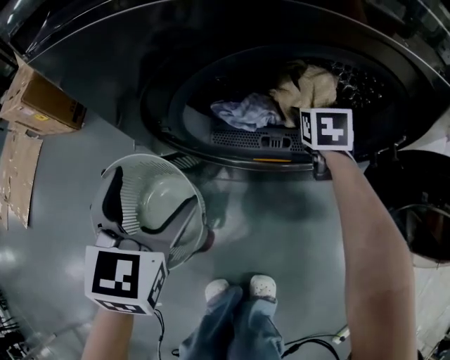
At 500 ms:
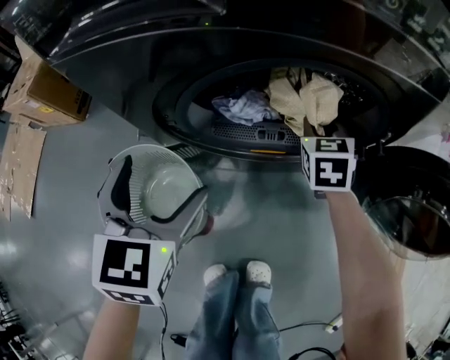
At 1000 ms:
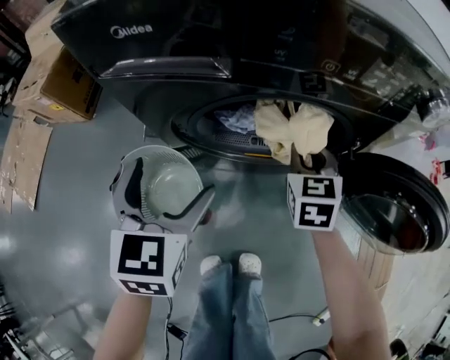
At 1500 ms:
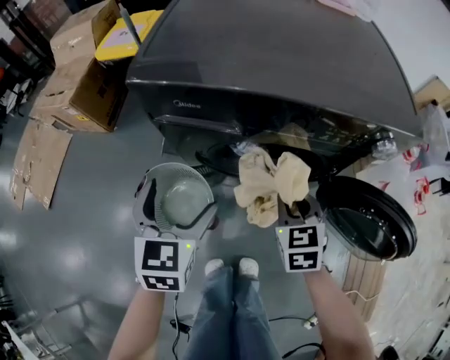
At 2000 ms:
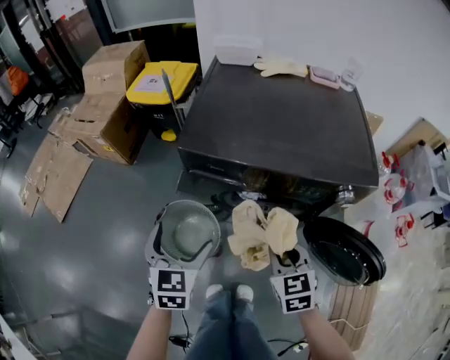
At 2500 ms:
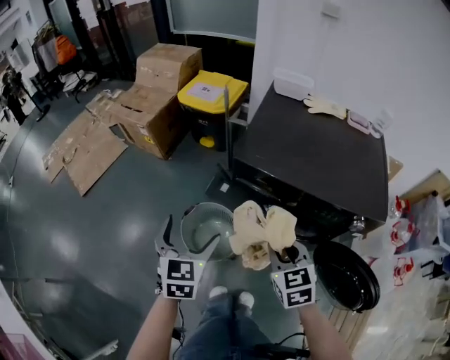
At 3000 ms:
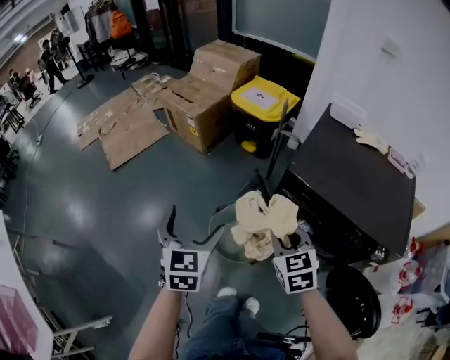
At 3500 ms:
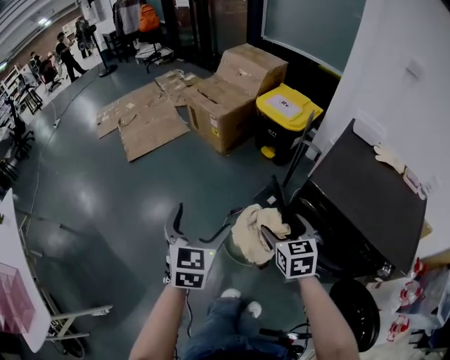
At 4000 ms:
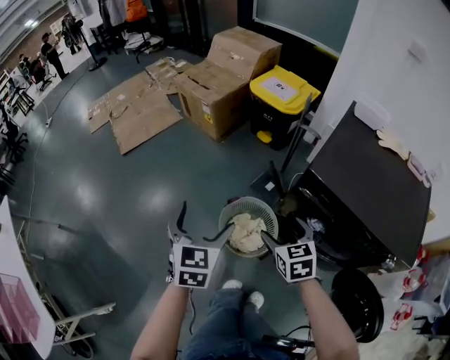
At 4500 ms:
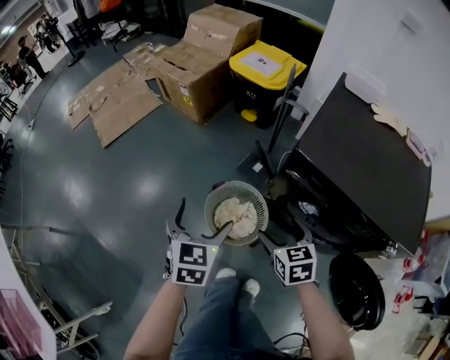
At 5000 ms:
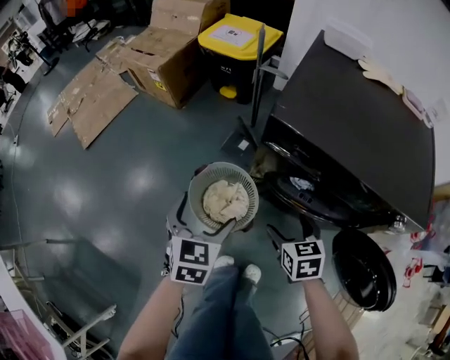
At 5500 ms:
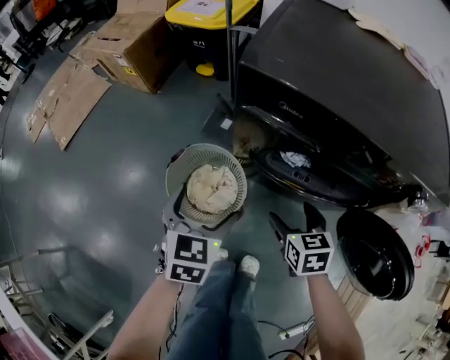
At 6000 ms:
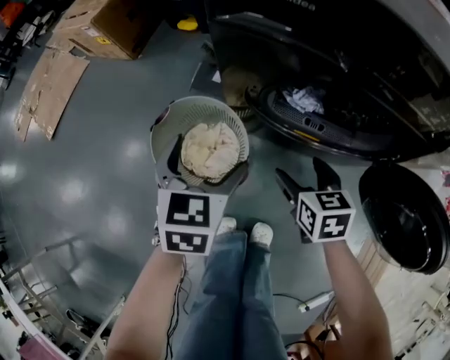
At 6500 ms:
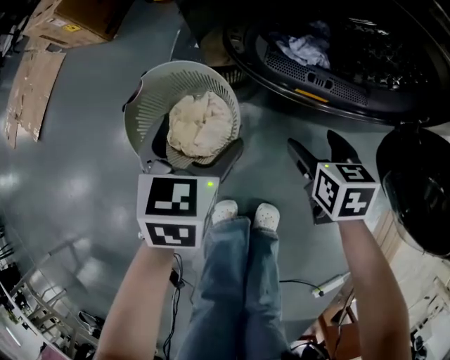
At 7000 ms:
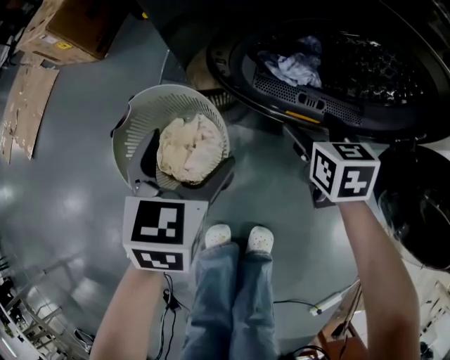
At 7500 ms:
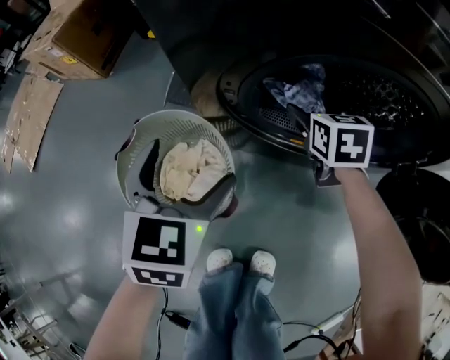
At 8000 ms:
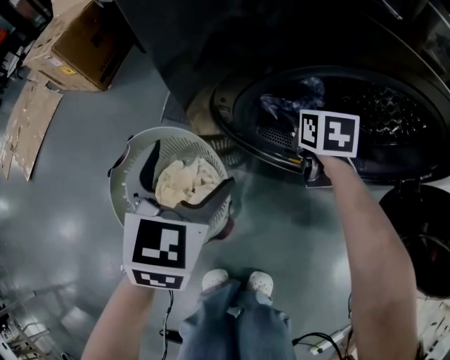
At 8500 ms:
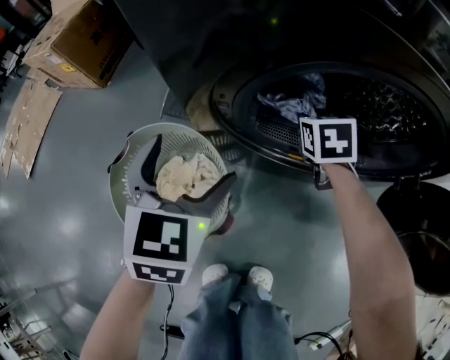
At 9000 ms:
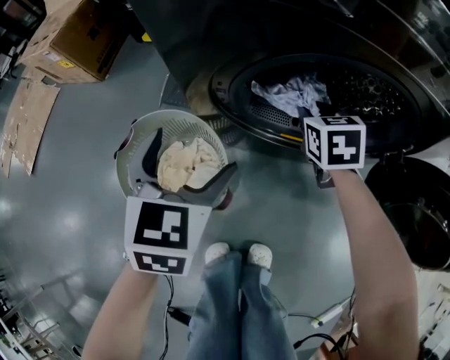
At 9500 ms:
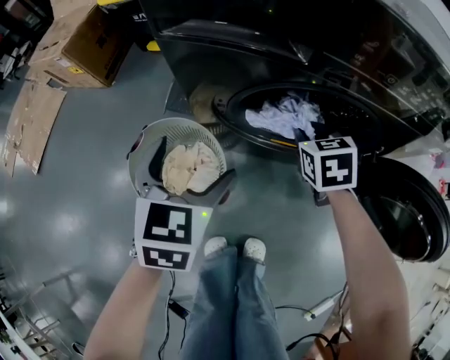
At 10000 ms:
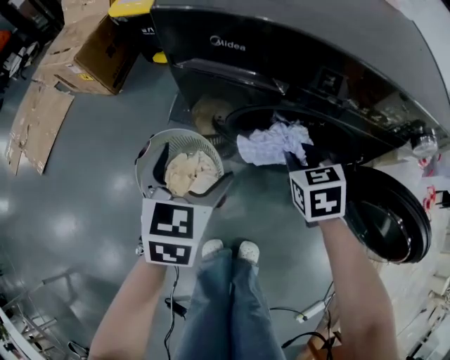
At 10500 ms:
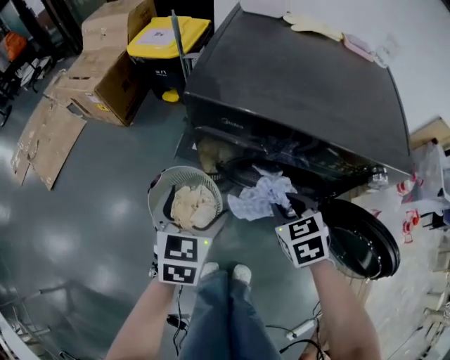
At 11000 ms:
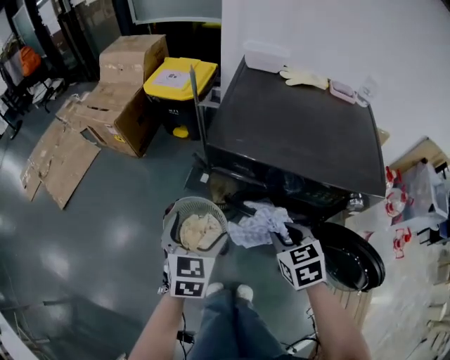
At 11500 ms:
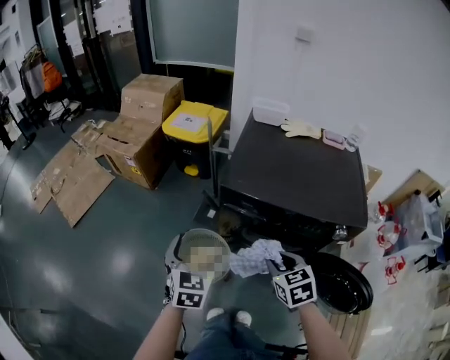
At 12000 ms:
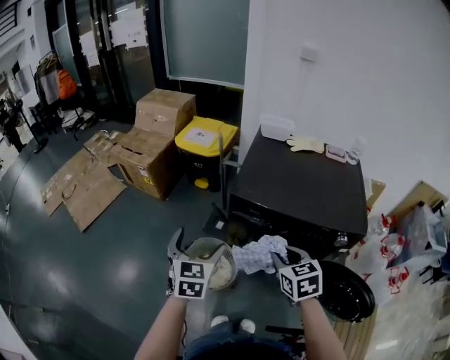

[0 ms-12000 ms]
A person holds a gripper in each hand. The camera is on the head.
0 ms to 2000 ms: The right gripper moves upward and backward, approximately 50 cm, rotates approximately 30 degrees, and closes up; the left gripper goes roughly 30 cm upward.
2000 ms to 4000 ms: The right gripper ends up about 25 cm from where it was, changes its angle by about 30 degrees, and opens; the left gripper changes place by about 25 cm, and rotates some 30 degrees.
4000 ms to 6000 ms: Both grippers travel together downward and to the right, approximately 40 cm. The right gripper changes its angle by roughly 30 degrees; the left gripper rotates some 30 degrees.
6000 ms to 8000 ms: The left gripper is displaced downward and forward by roughly 15 cm, while the right gripper goes about 25 cm forward and downward.
8000 ms to 10000 ms: The right gripper shifts roughly 25 cm upward and backward, and closes its fingers, while the left gripper heads upward, covering approximately 15 cm.
10000 ms to 12000 ms: Both grippers move upward, about 35 cm.

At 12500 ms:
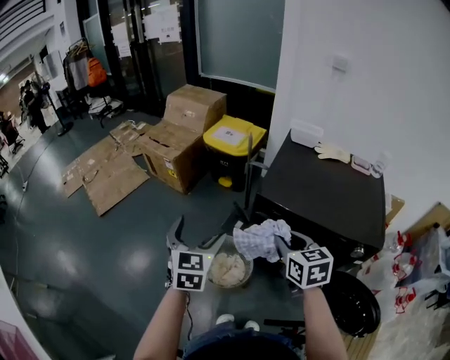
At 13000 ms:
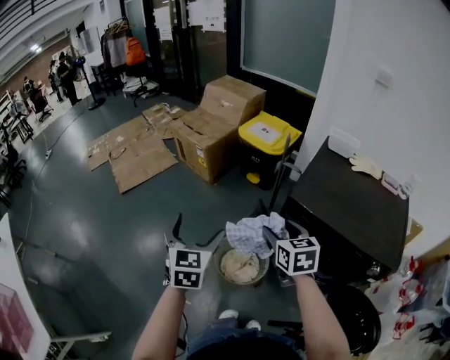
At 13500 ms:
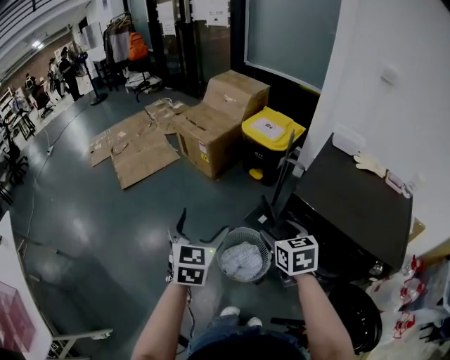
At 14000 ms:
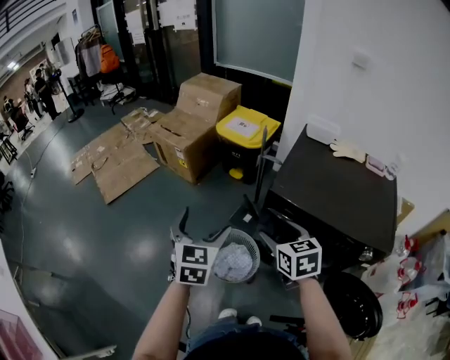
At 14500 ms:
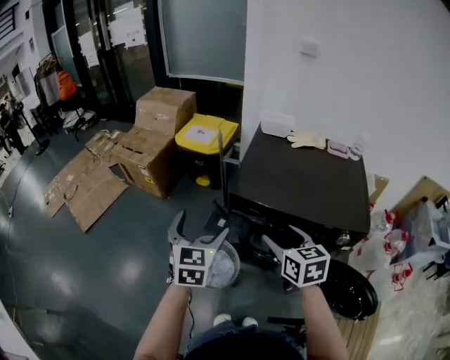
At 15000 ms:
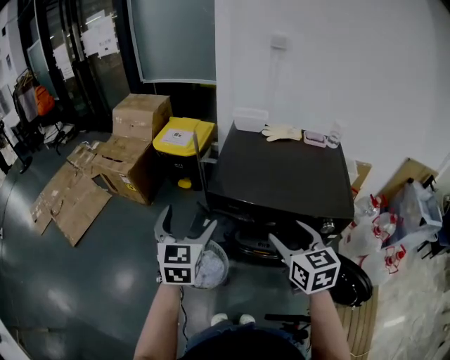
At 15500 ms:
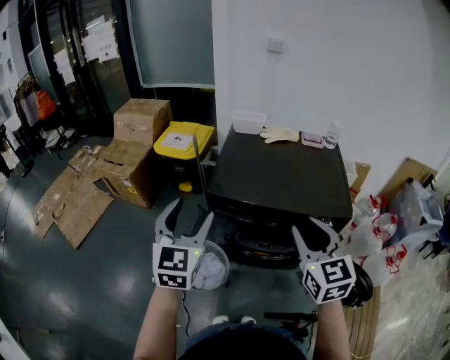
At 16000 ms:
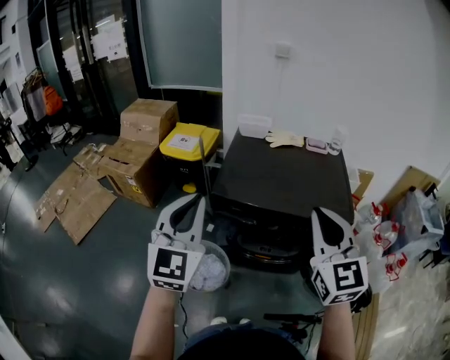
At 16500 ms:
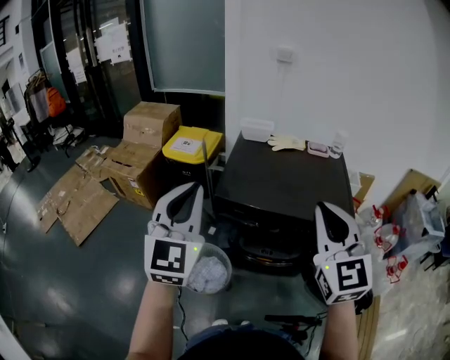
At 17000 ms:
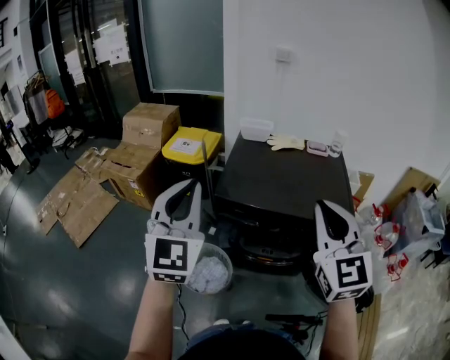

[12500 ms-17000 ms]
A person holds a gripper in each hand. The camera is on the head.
12500 ms to 14500 ms: The right gripper reaches some 10 cm to the left, then returns, and opens, while the left gripper moves to the right, some 10 cm.
14500 ms to 17000 ms: The left gripper travels upward by about 20 cm, rotates some 30 degrees, and closes, while the right gripper travels upward and to the right by about 25 cm, turns by approximately 40 degrees, and closes its fingers.

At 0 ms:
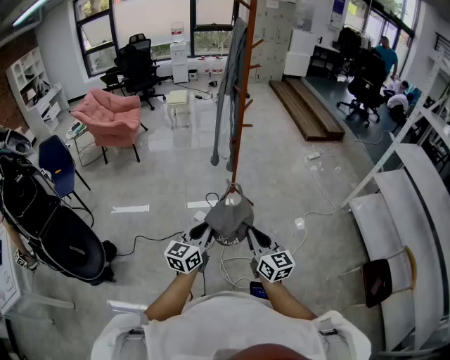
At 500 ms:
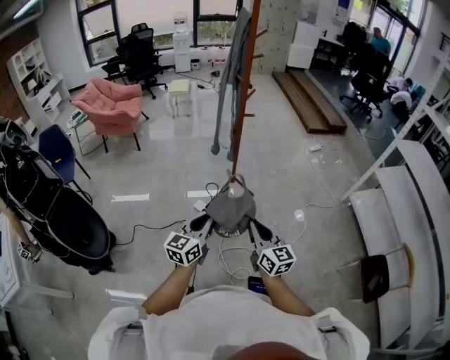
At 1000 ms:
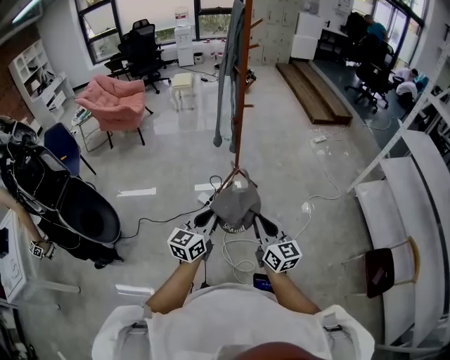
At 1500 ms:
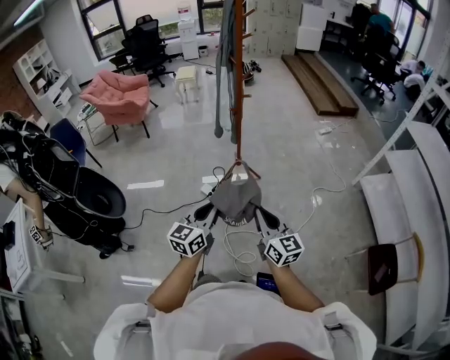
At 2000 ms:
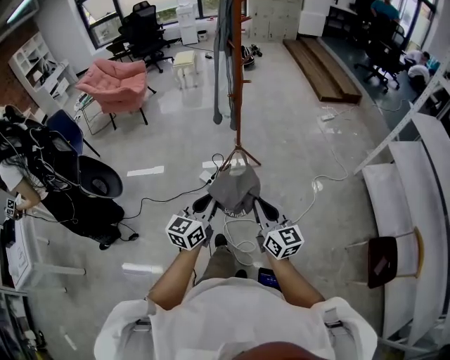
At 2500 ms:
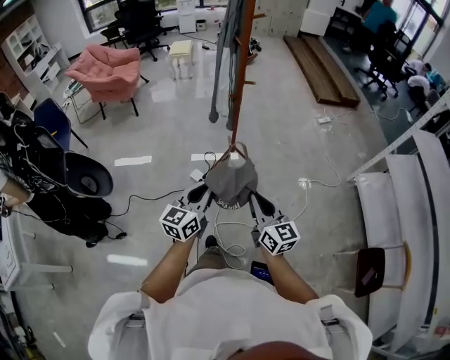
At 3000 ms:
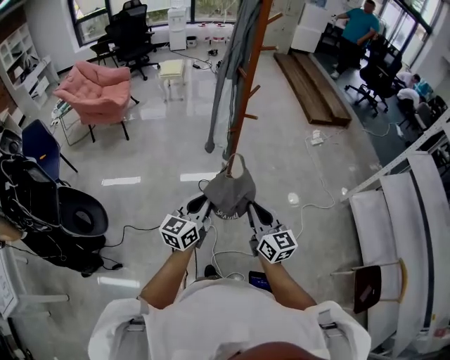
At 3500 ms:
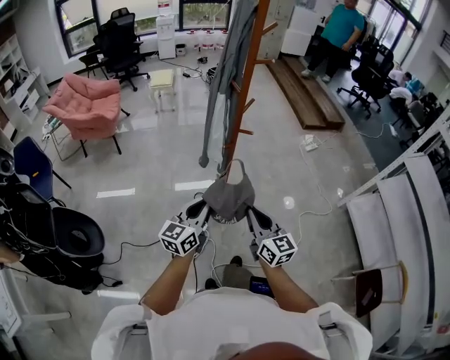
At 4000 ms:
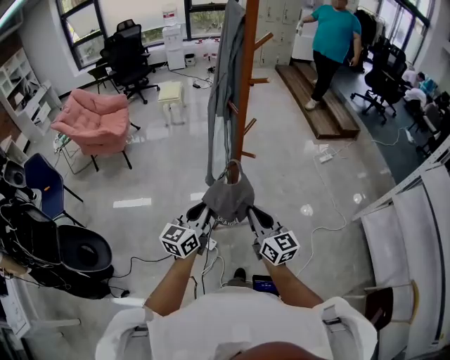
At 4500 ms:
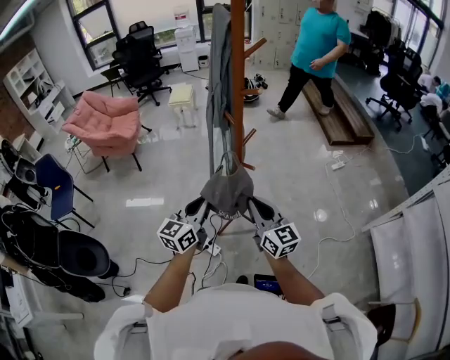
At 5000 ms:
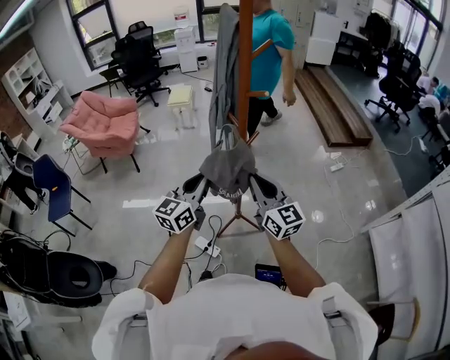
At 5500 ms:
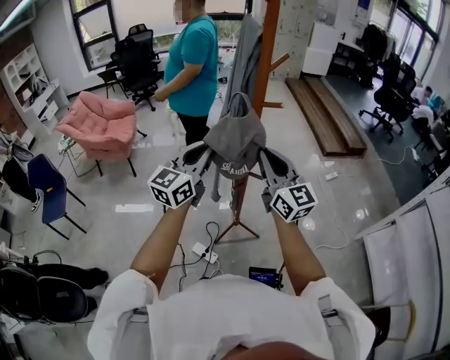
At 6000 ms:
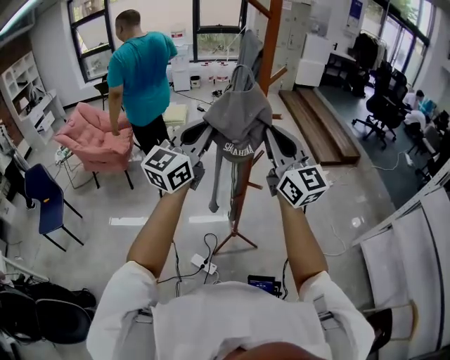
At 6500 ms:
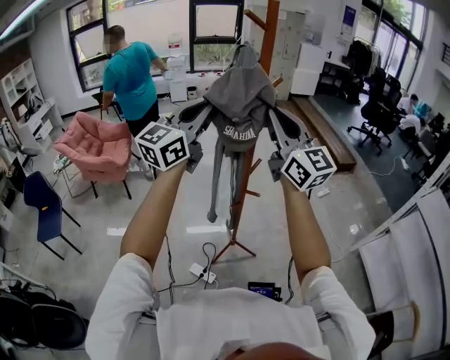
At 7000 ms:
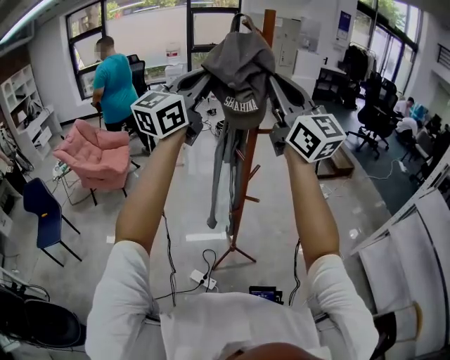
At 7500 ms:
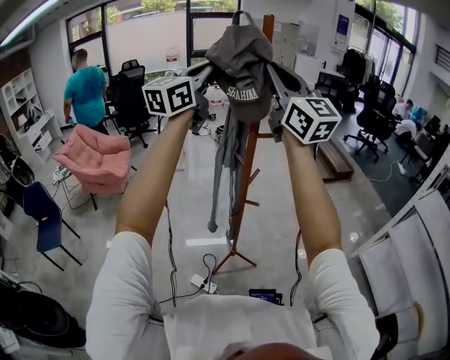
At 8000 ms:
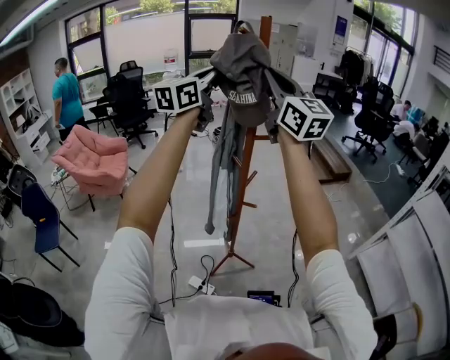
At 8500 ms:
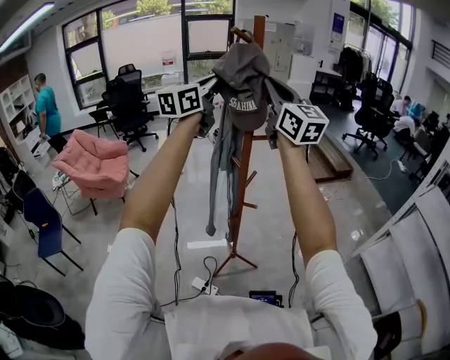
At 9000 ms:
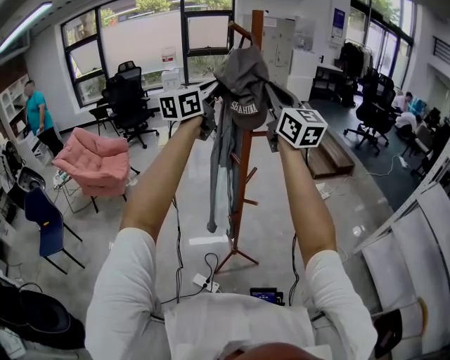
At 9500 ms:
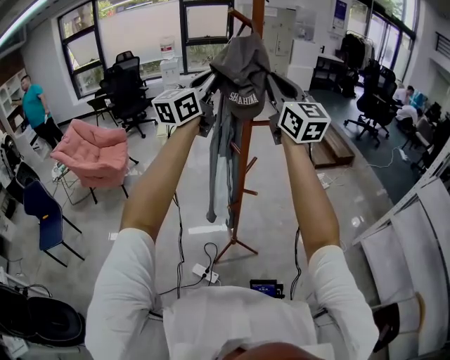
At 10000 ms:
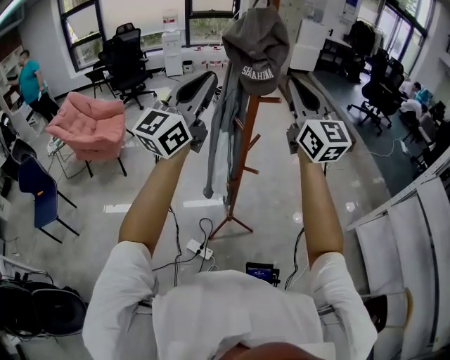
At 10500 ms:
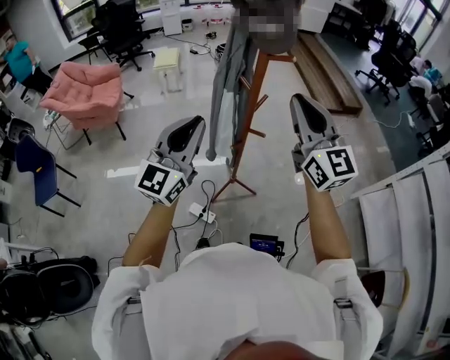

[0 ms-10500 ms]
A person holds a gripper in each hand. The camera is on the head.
0 ms to 2000 ms: Both grippers travel together to the right, about 10 cm.
2000 ms to 4000 ms: The pair of grippers is taken forward, approximately 40 cm.
4000 ms to 6500 ms: Both grippers move upward and forward, about 40 cm. The right gripper changes its angle by roughly 30 degrees, while the left gripper rotates approximately 30 degrees.
6500 ms to 8500 ms: The left gripper goes about 15 cm forward and upward, while the right gripper shifts about 15 cm upward and forward.
8500 ms to 10500 ms: The grippers both shift downward and backward by approximately 30 cm.
